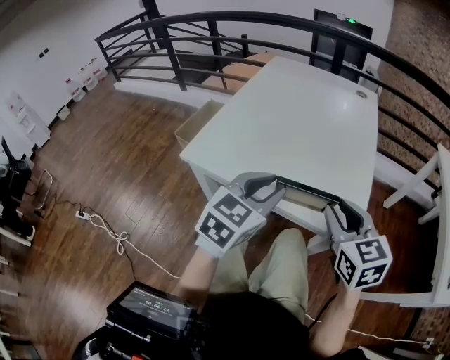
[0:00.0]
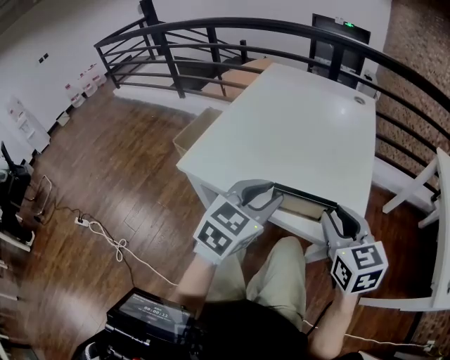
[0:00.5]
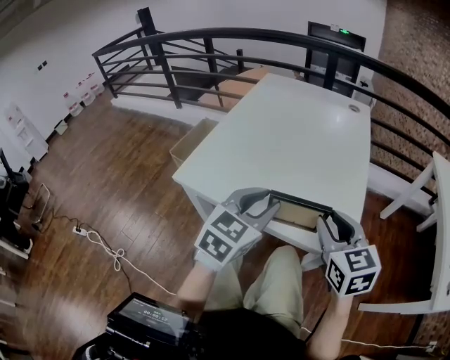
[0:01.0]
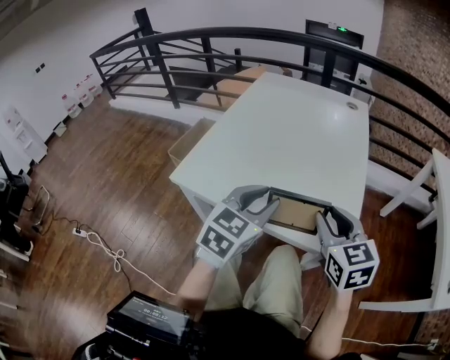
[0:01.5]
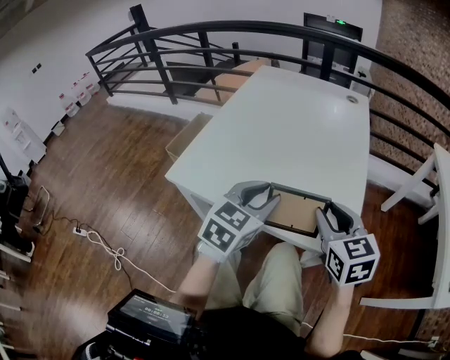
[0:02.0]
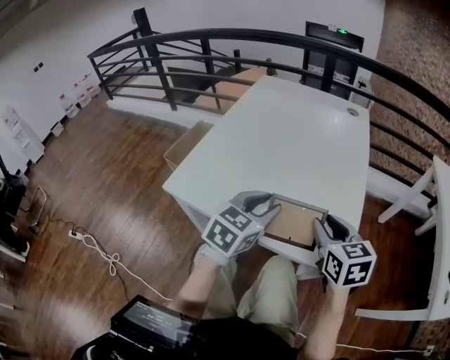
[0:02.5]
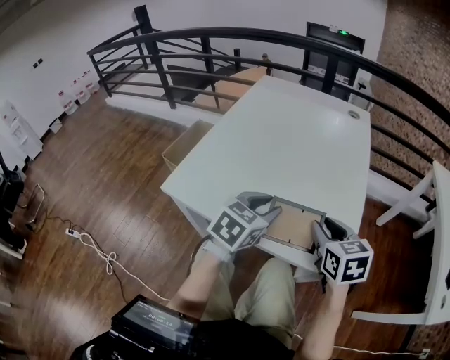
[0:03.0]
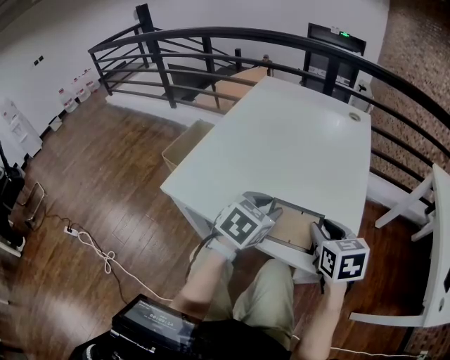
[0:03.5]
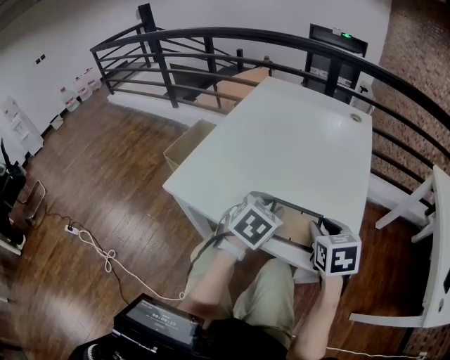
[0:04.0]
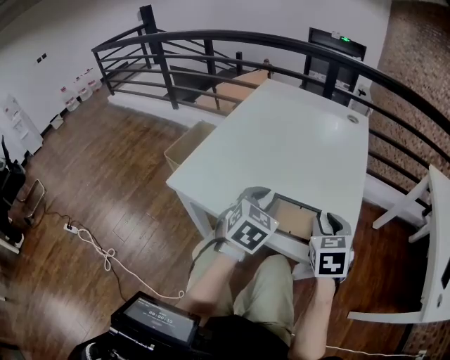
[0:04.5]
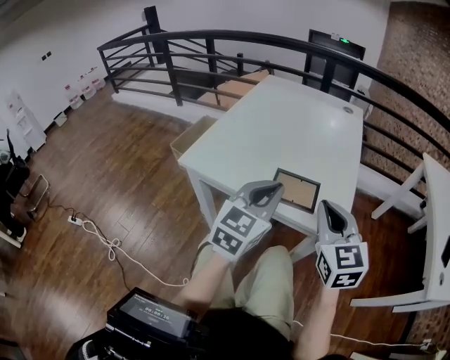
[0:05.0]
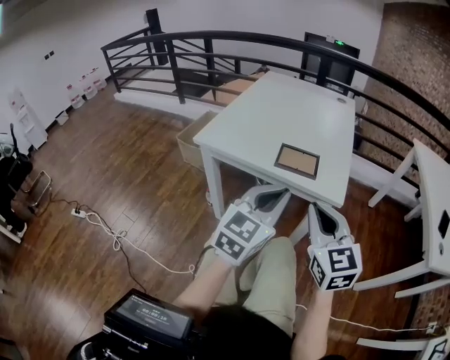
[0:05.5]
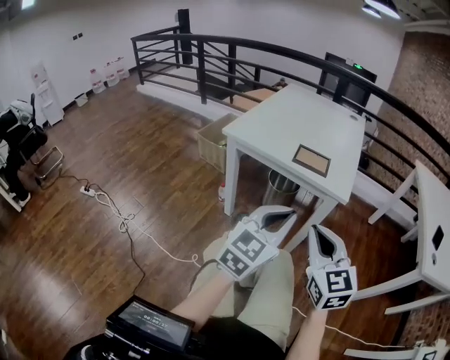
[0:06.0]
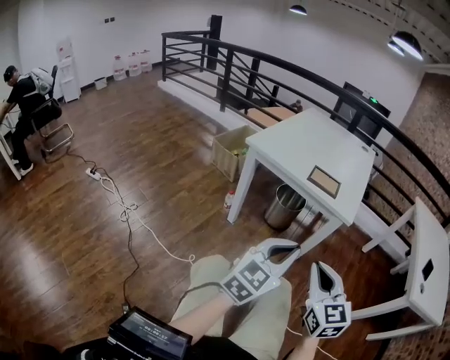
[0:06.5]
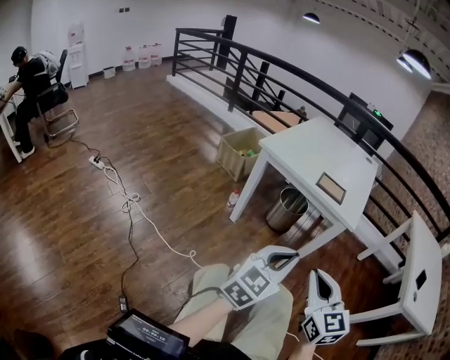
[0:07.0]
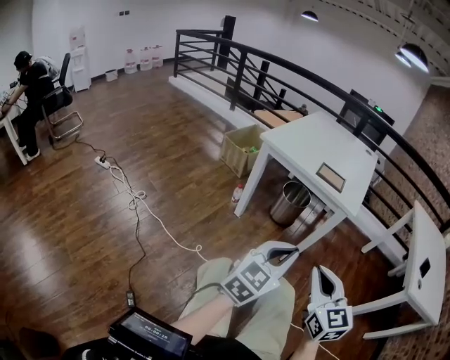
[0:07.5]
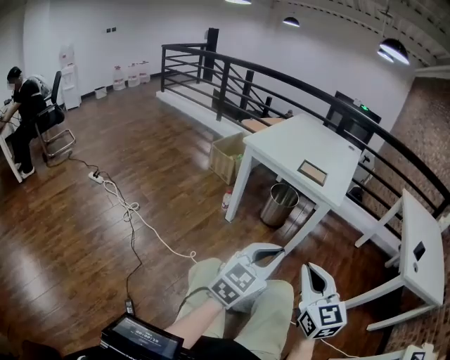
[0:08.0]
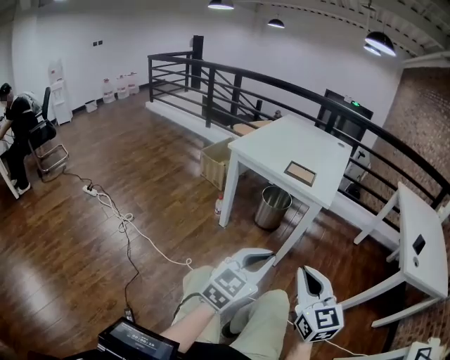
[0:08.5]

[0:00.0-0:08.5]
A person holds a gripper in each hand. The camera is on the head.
0:00.0 to 0:02.0: Both grippers travel together forward, roughly 5 cm.
0:02.0 to 0:04.0: The left gripper shifts about 10 cm downward and forward, while the right gripper is displaced downward by about 5 cm.
0:04.0 to 0:06.5: The two grippers travel together, backward, about 40 cm. The right gripper turns by about 30 degrees, and closes its fingers. The left gripper points its fingers some 40 degrees further upward, and closes.
0:06.5 to 0:08.5: The two grippers go about 10 cm backward.

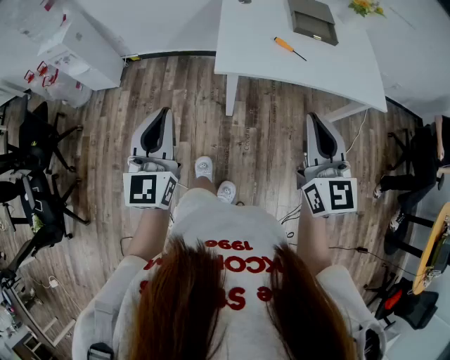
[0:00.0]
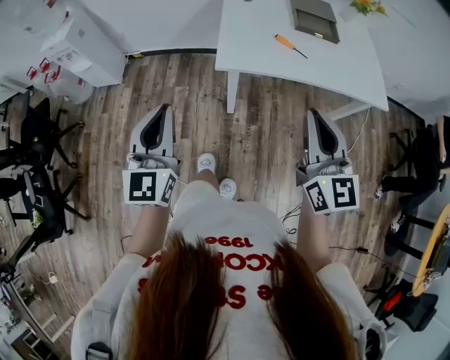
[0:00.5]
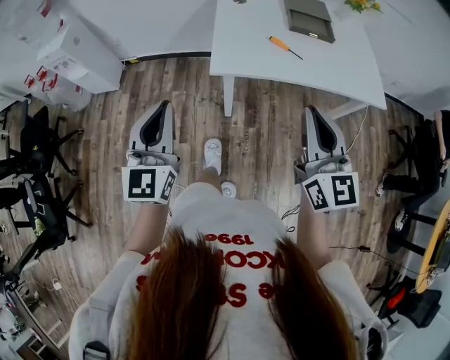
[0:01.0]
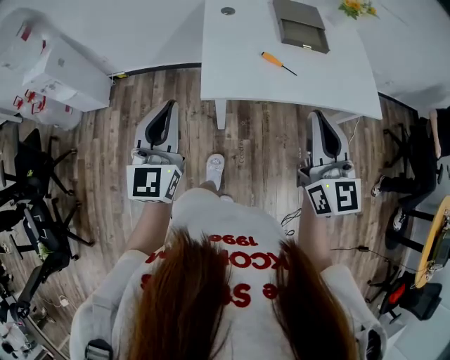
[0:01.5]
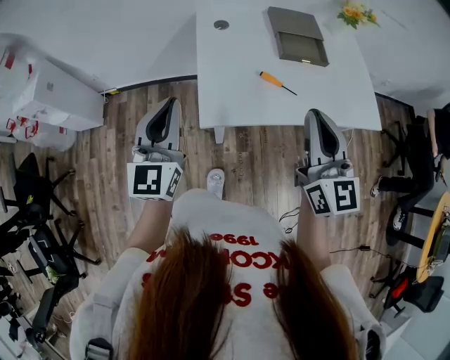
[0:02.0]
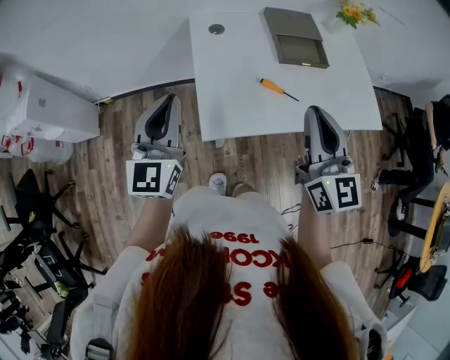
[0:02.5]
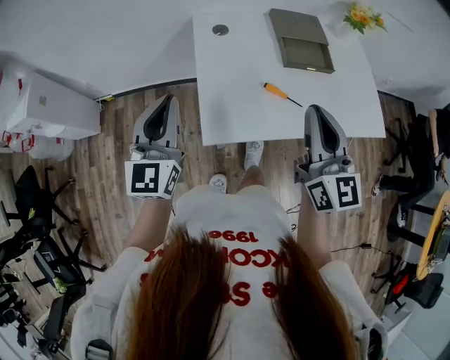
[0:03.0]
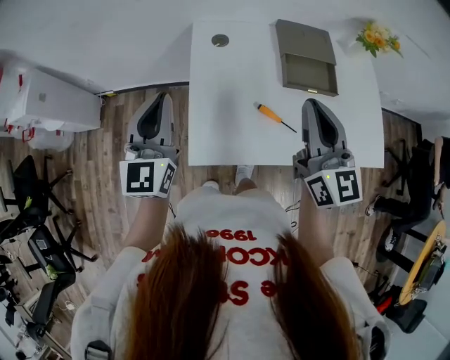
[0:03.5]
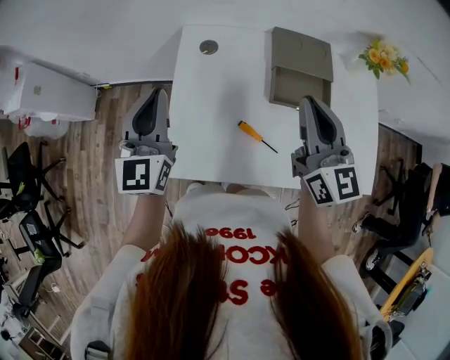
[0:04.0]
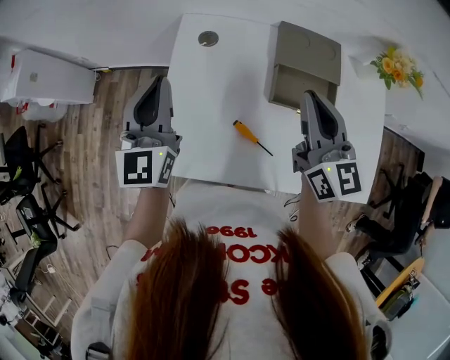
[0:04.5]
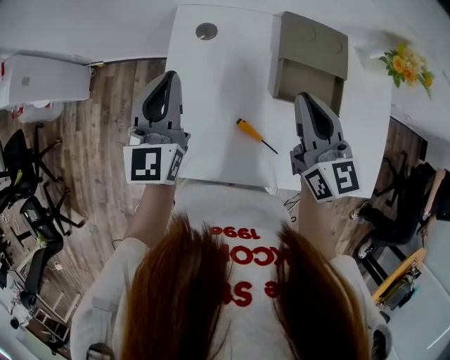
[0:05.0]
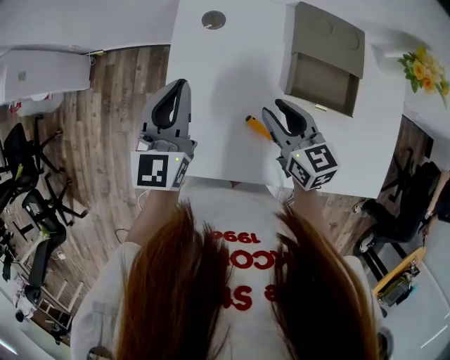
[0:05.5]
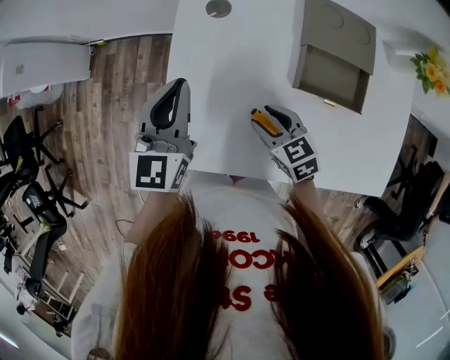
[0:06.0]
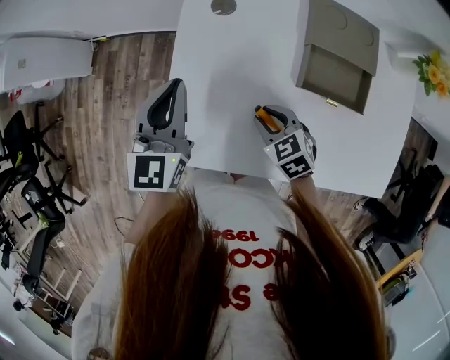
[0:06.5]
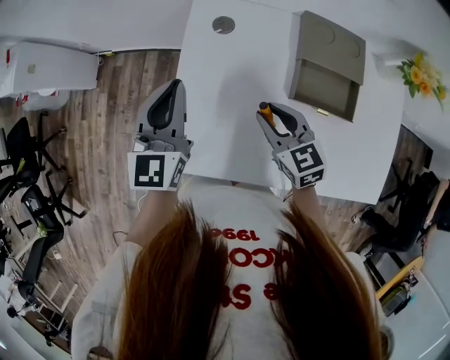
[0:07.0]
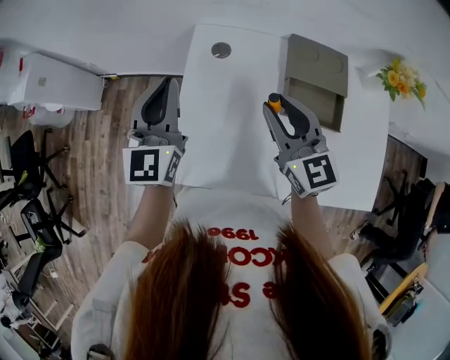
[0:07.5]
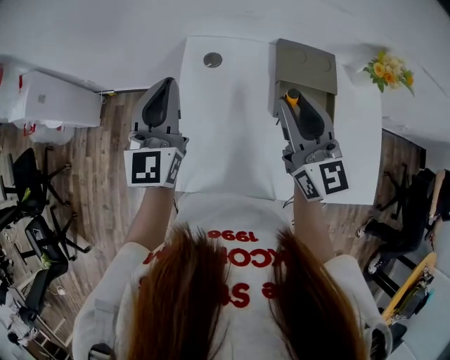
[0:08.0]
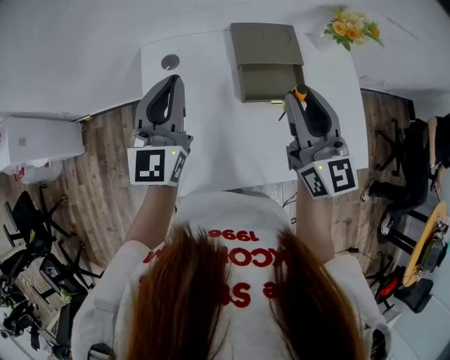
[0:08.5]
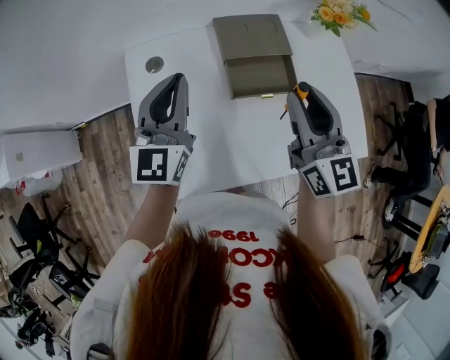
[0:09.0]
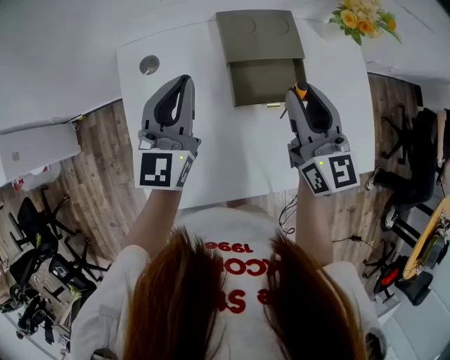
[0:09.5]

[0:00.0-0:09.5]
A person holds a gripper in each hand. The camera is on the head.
0:00.0 to 0:02.0: Both grippers move forward, roughly 20 cm.
0:02.0 to 0:04.0: The grippers both shift forward by about 25 cm.
0:04.0 to 0:05.5: The right gripper heads downward, covering approximately 20 cm, changes its angle by some 40 degrees, and opens its fingers, while the left gripper goes roughly 10 cm downward.
0:05.5 to 0:07.5: The right gripper travels upward by approximately 15 cm, and changes its angle by roughly 30 degrees. Meanwhile the left gripper is displaced upward by roughly 10 cm.
0:07.5 to 0:09.5: The right gripper moves roughly 5 cm upward and comes back, and turns by about 30 degrees; the left gripper moves about 20 cm, and turns by approximately 20 degrees.

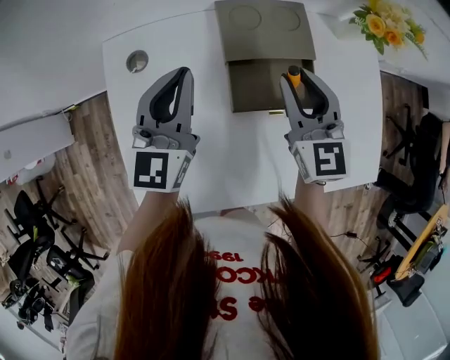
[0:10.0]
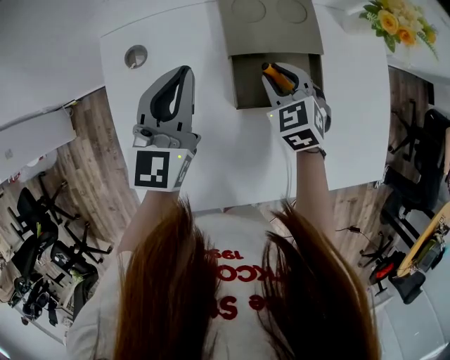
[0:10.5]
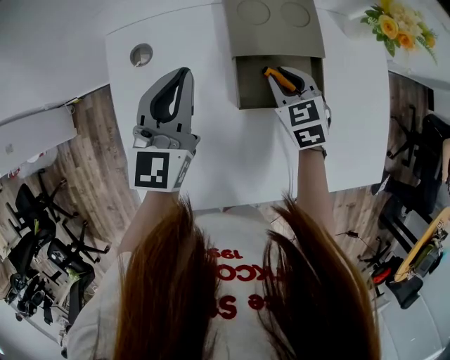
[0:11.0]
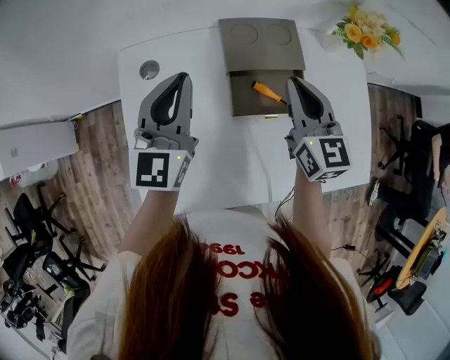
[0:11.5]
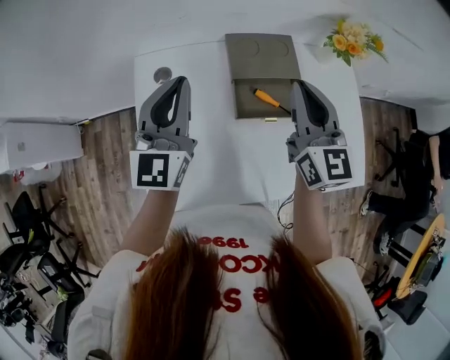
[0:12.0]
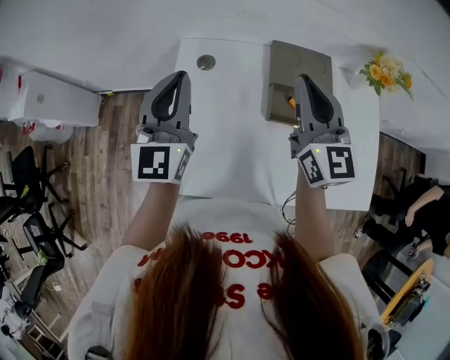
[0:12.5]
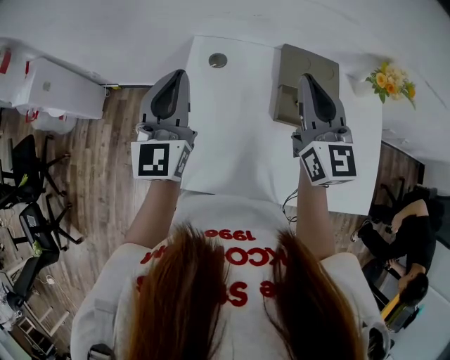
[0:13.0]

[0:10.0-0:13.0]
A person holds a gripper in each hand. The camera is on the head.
0:10.0 to 0:11.5: The right gripper reaches roughly 15 cm downward, then returns, and closes; the left gripper moves about 5 cm.
0:11.5 to 0:13.0: The right gripper is displaced upward and to the left by about 15 cm. Meanwhile the left gripper heads to the left, upward and backward, covering some 20 cm, and rotates approximately 20 degrees.

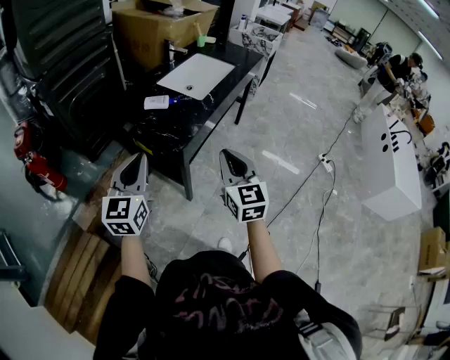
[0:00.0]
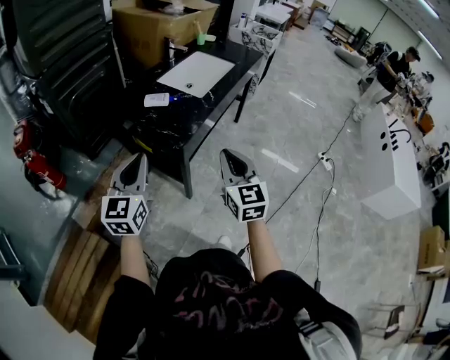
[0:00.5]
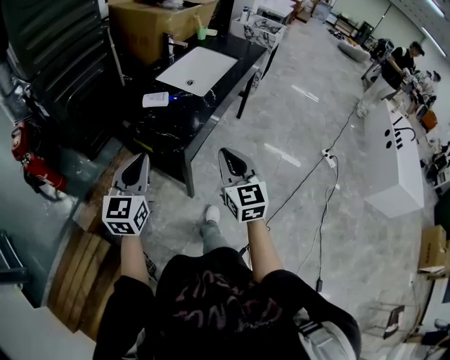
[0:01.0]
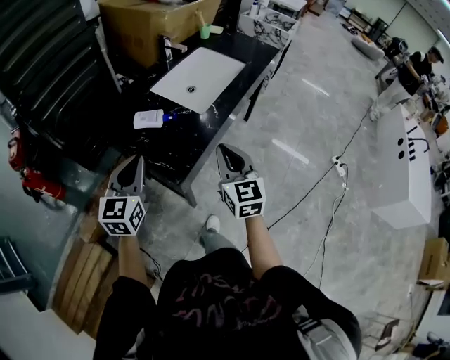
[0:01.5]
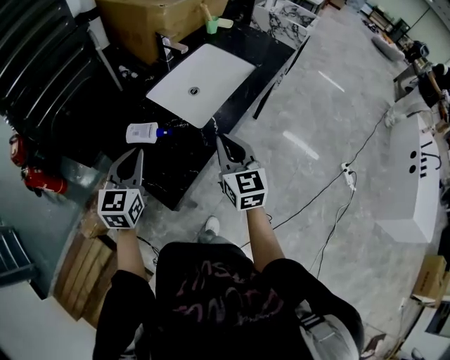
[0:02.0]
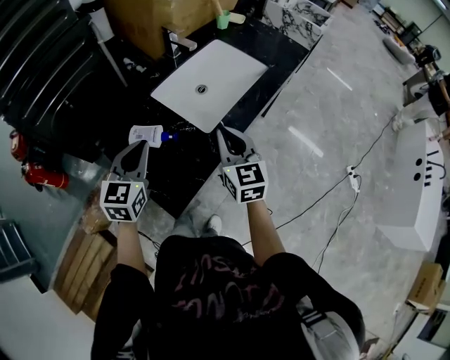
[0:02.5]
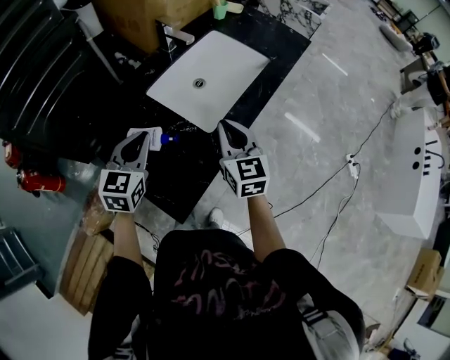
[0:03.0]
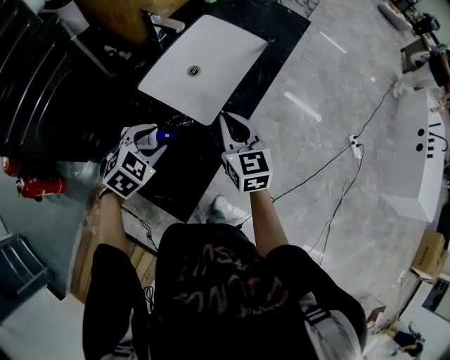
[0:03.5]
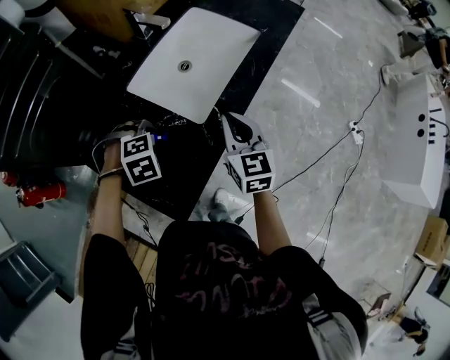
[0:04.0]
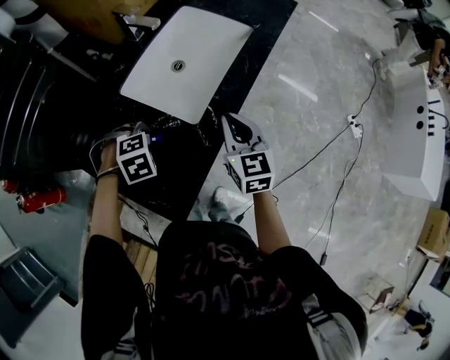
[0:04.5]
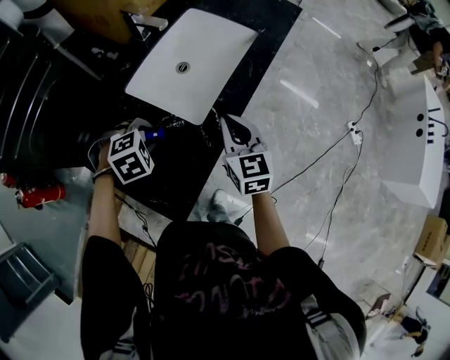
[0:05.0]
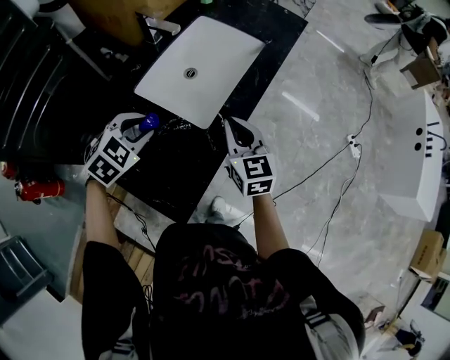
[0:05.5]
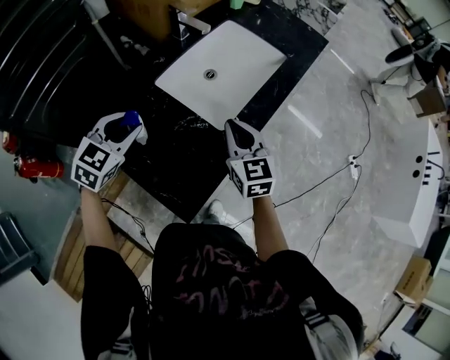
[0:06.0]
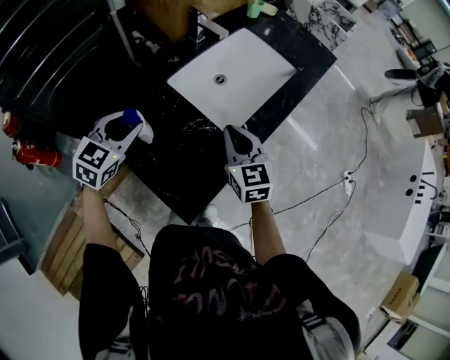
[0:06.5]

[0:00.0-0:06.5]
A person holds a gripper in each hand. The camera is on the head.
0:00.0 to 0:02.0: Both grippers move forward, roughly 30 cm.
0:02.0 to 0:04.5: The left gripper goes some 20 cm downward, tilts its fingers some 70 degrees downward, and opens its fingers. The right gripper changes place by approximately 15 cm.
0:04.5 to 0:06.5: The left gripper moves some 20 cm, and points its fingers approximately 50 degrees further upward. The right gripper shifts by approximately 10 cm.
